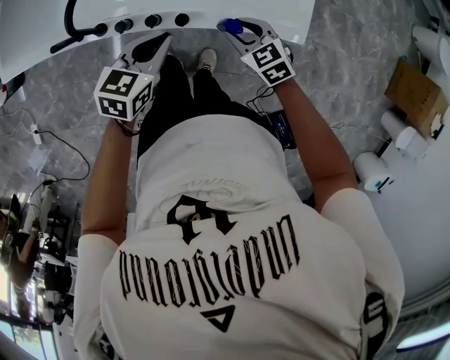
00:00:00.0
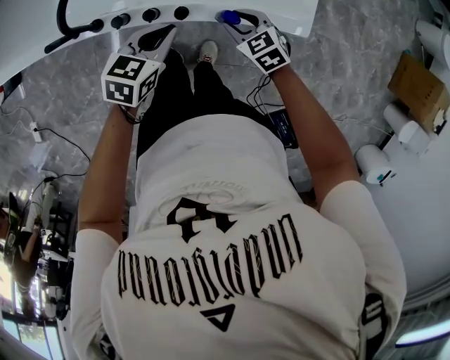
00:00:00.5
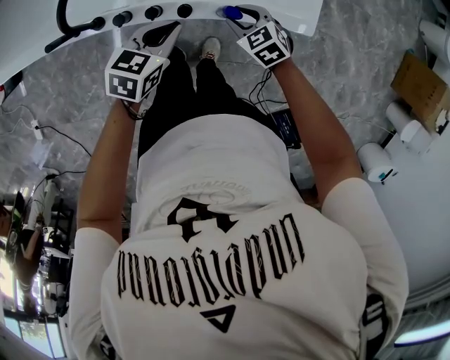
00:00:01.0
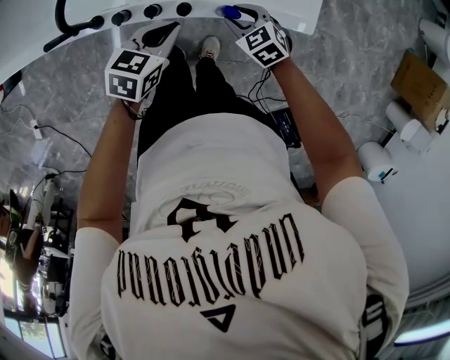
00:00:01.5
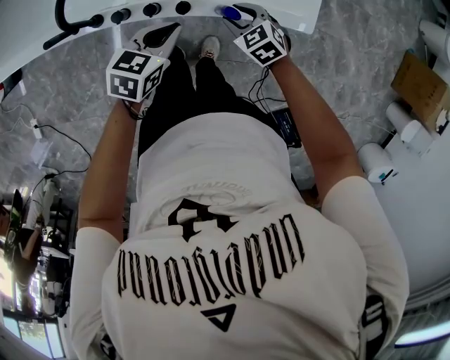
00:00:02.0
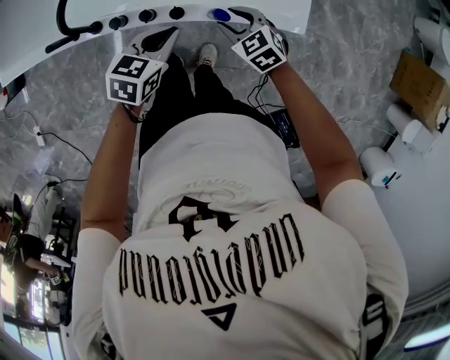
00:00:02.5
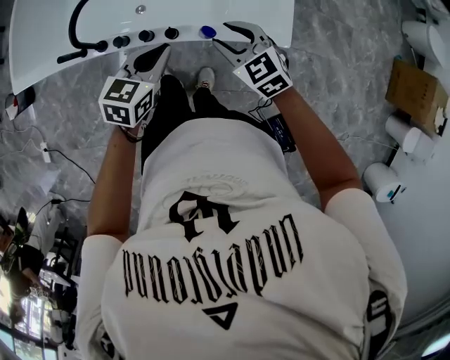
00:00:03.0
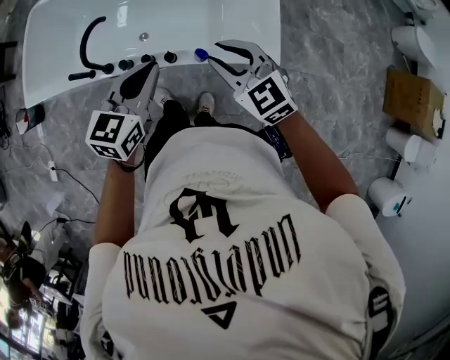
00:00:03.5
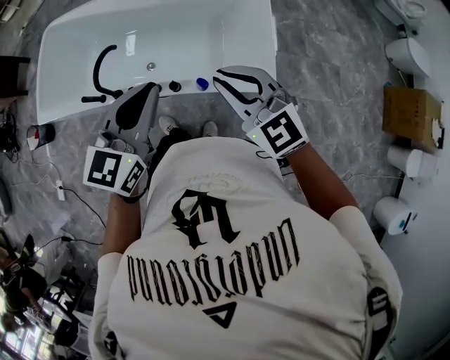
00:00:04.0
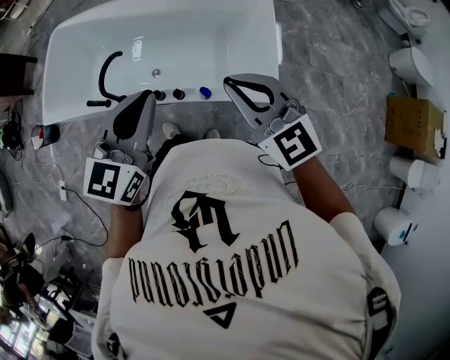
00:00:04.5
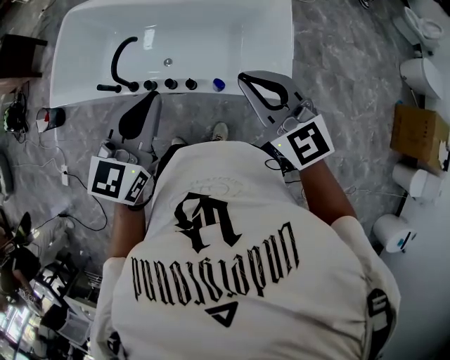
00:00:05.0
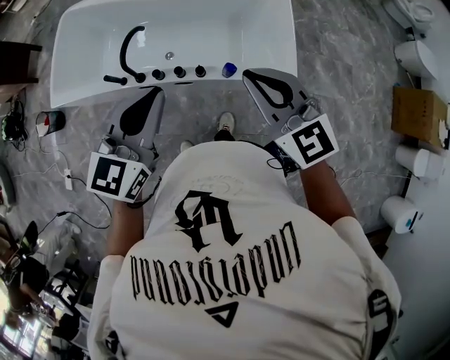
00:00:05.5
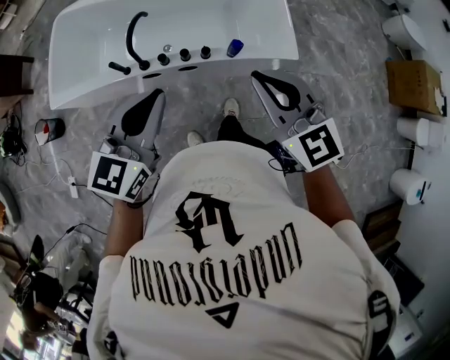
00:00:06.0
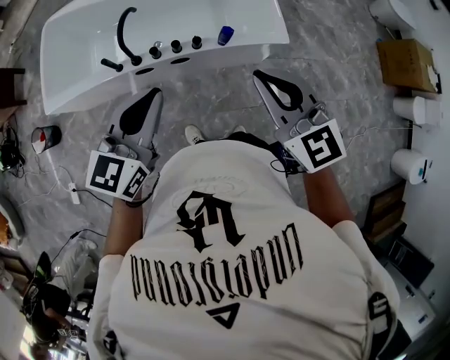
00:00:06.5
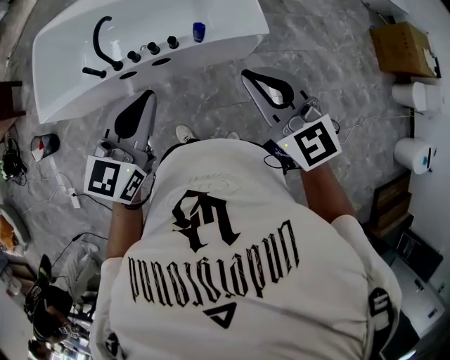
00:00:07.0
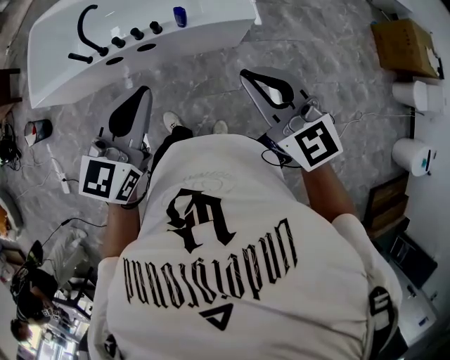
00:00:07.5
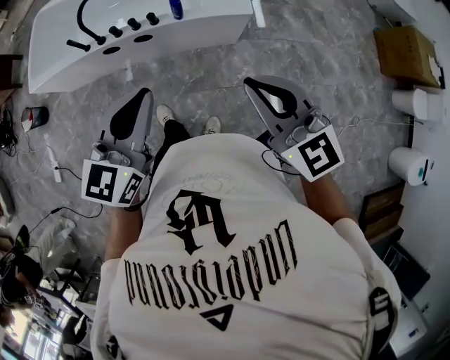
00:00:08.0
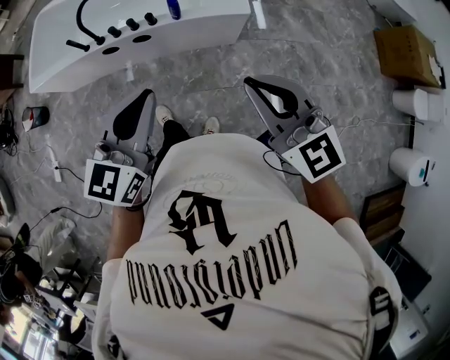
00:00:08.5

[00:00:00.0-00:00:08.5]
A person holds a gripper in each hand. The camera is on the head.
00:00:00.0 to 00:00:02.0: Both grippers travel together downward, some 5 cm.
00:00:02.0 to 00:00:04.0: Both grippers travel together upward, about 35 cm. The right gripper tips its fingers upward by some 40 degrees, and closes. The left gripper swivels roughly 40 degrees.
00:00:04.0 to 00:00:06.5: The two grippers go some 25 cm backward and to the left. The right gripper rotates about 20 degrees.
00:00:06.5 to 00:00:08.5: The grippers both shift to the right and backward by about 30 cm.

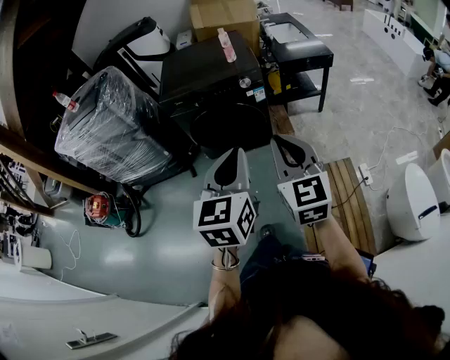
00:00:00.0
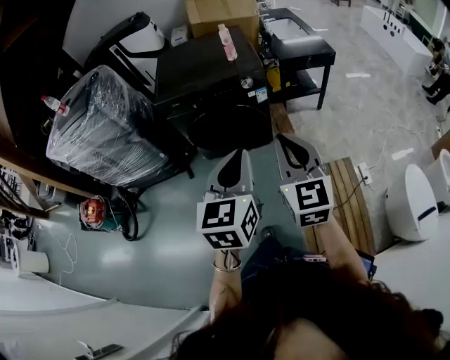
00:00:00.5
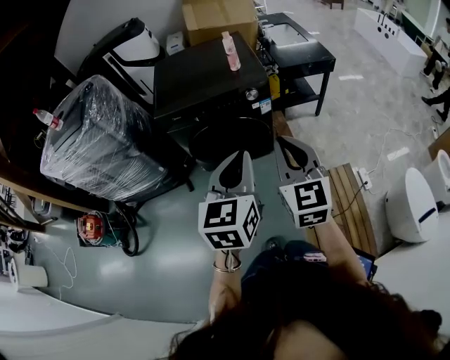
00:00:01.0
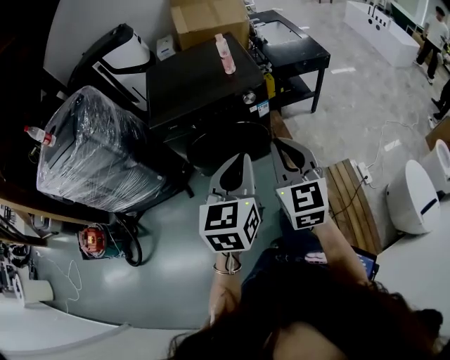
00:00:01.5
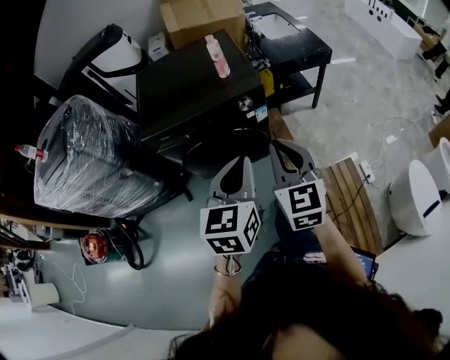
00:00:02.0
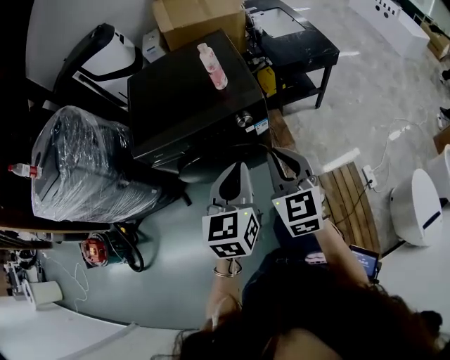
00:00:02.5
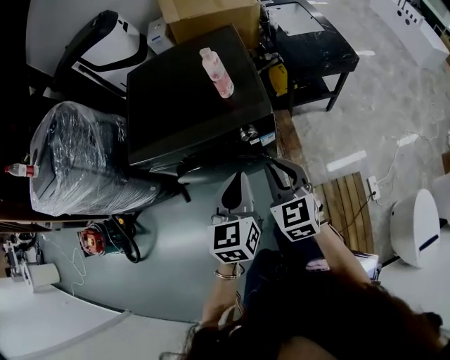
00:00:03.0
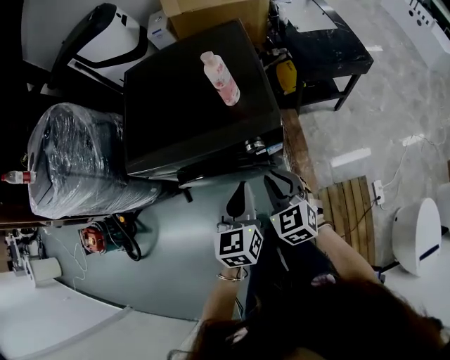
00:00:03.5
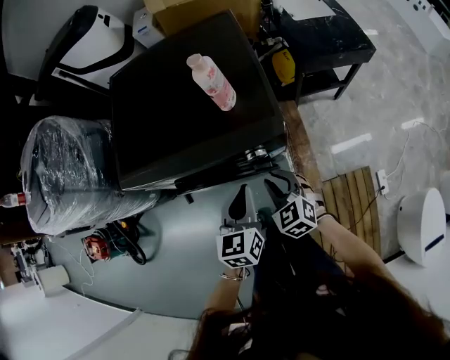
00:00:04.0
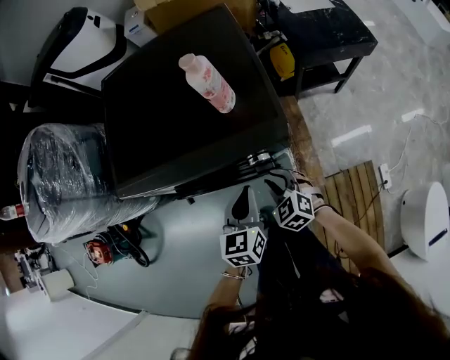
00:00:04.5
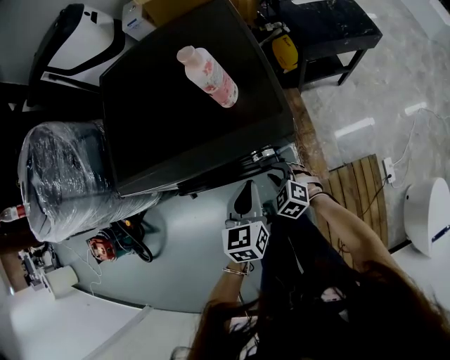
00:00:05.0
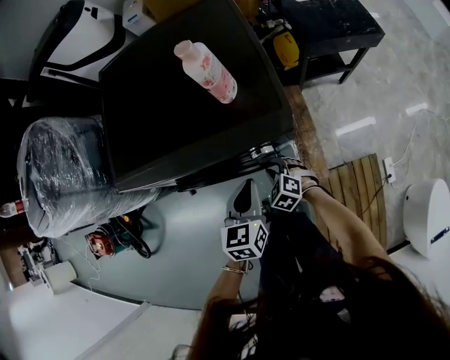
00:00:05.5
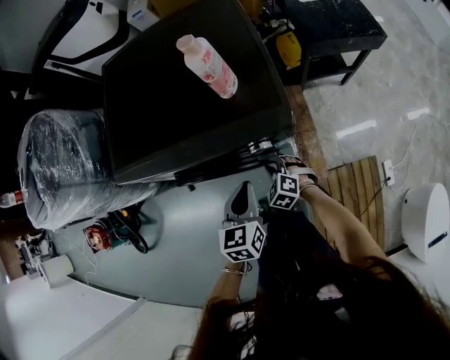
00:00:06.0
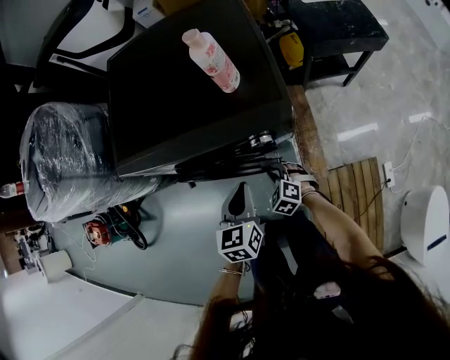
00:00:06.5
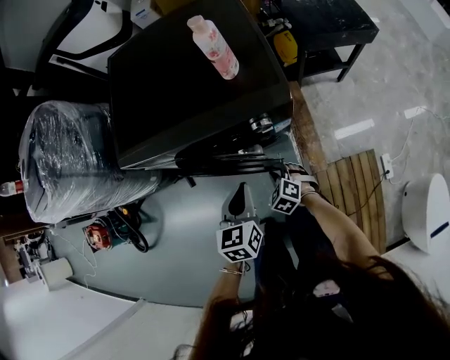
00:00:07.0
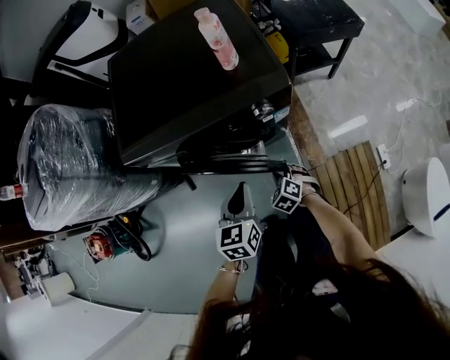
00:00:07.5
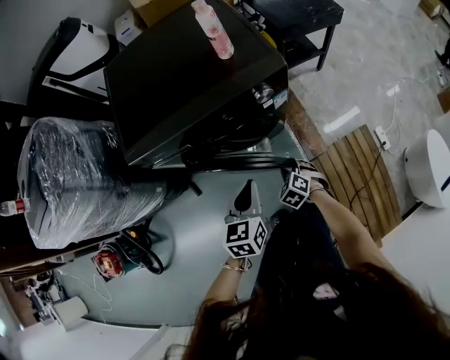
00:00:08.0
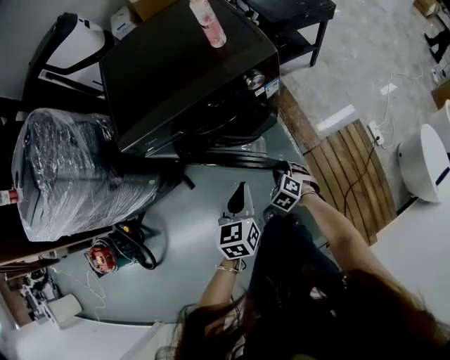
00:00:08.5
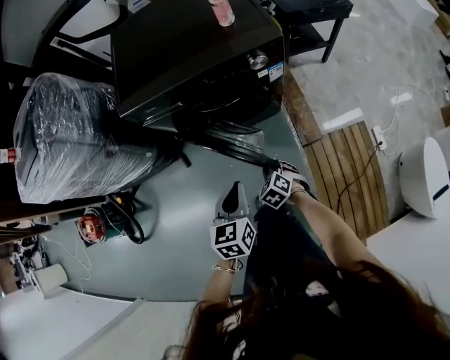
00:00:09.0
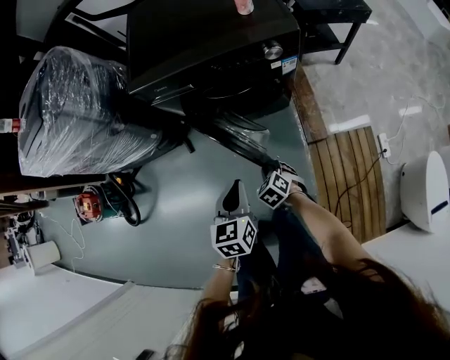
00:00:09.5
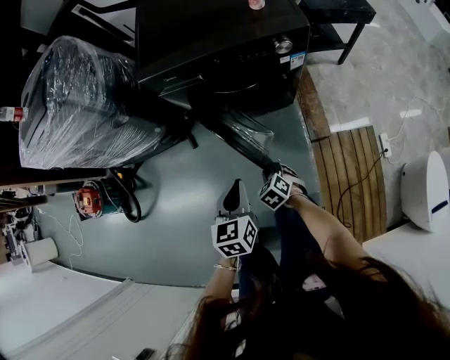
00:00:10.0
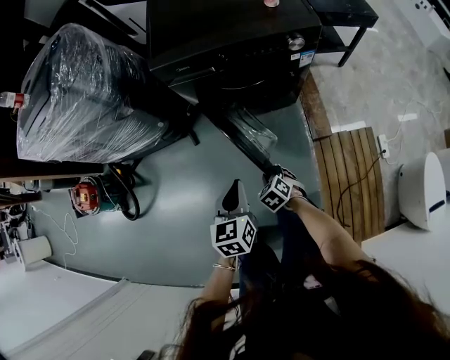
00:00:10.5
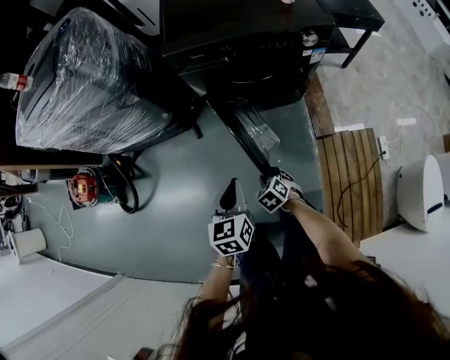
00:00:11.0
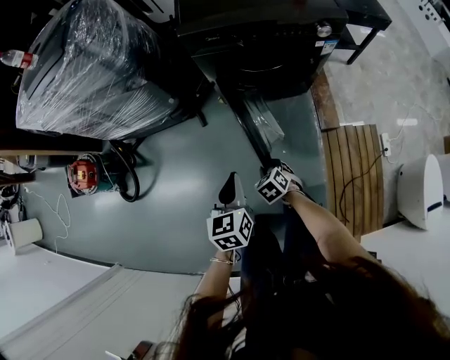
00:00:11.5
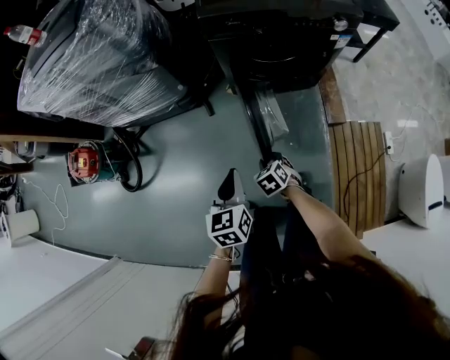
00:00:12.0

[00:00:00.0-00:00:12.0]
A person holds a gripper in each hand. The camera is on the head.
00:00:00.0 to 00:00:02.0: Both grippers travel together forward, roughly 25 cm.
00:00:02.0 to 00:00:04.0: The right gripper heads downward and forward, covering roughly 40 cm, changes its angle by approximately 40 degrees, and opens up. Meanwhile the left gripper shifts roughly 35 cm forward and downward.
00:00:04.0 to 00:00:06.0: The left gripper is displaced downward by roughly 5 cm. Meanwhile the right gripper travels downward by about 15 cm, and changes its angle by about 30 degrees.
00:00:06.0 to 00:00:08.0: The right gripper shifts about 15 cm backward, and changes its angle by about 20 degrees, while the left gripper moves backward and to the left, approximately 15 cm.
00:00:08.0 to 00:00:10.0: The grippers both shift backward and to the left by approximately 20 cm.
00:00:10.0 to 00:00:12.0: The grippers both shift to the left by some 20 cm.

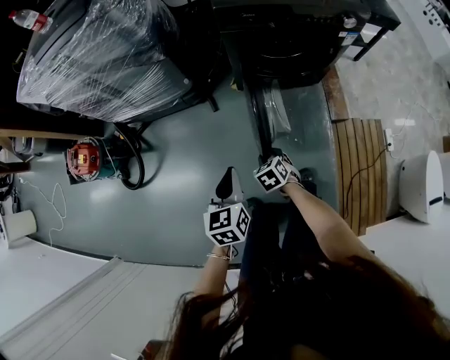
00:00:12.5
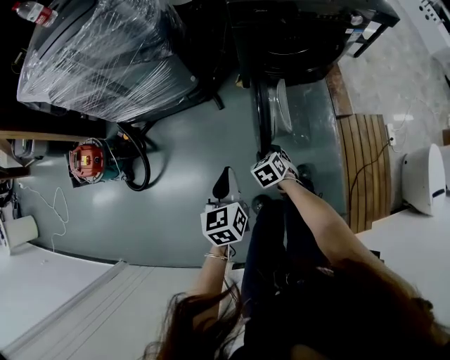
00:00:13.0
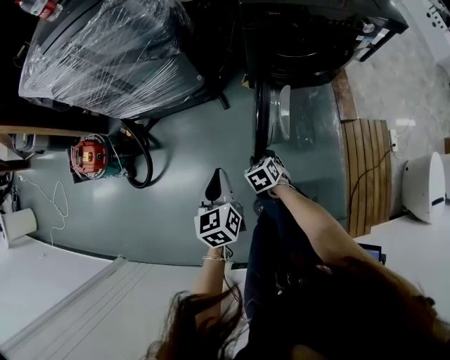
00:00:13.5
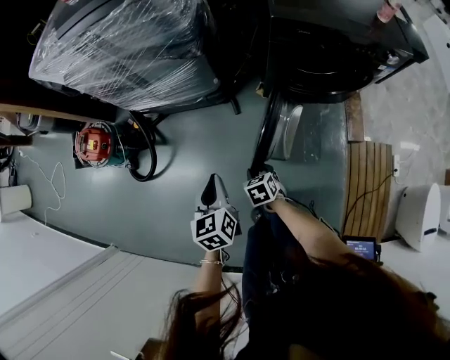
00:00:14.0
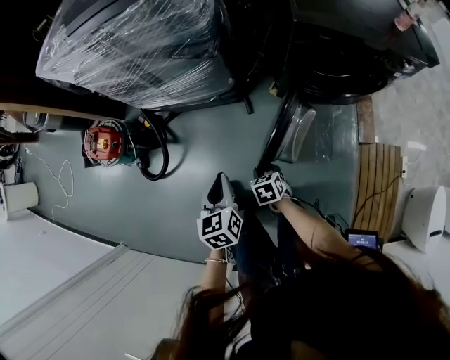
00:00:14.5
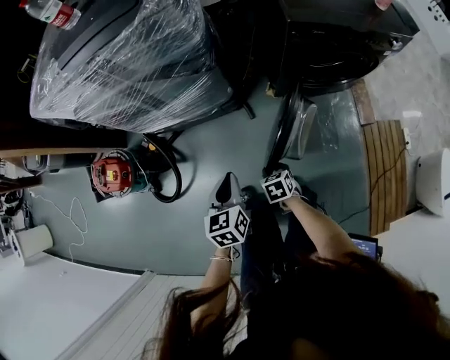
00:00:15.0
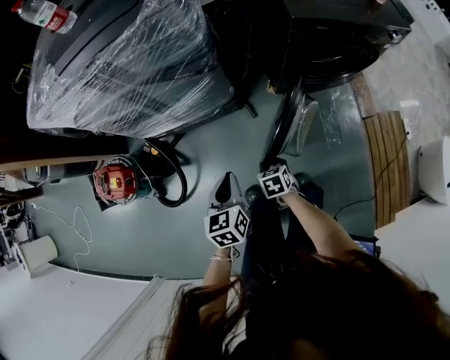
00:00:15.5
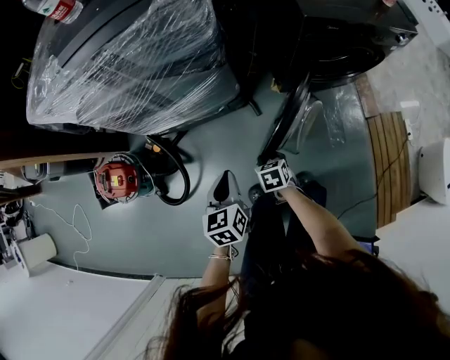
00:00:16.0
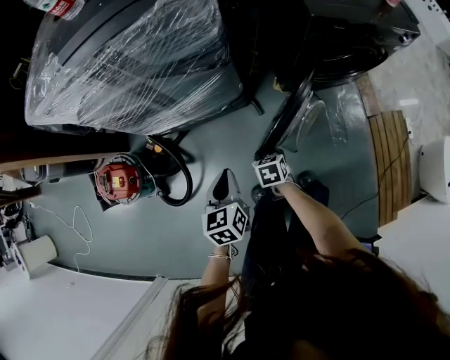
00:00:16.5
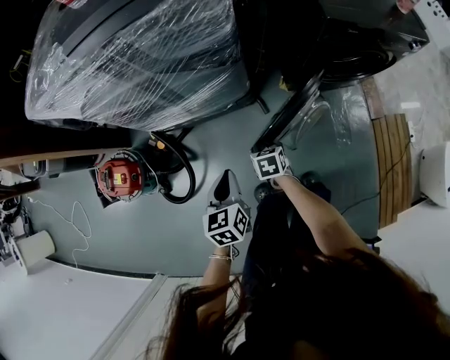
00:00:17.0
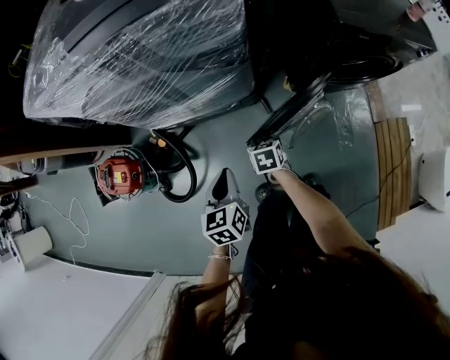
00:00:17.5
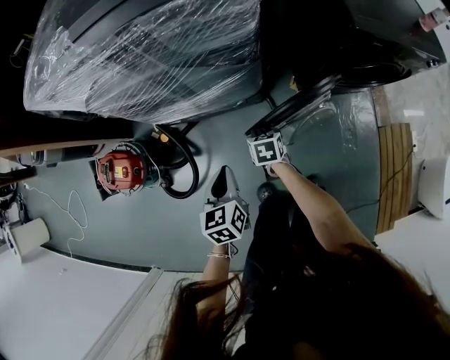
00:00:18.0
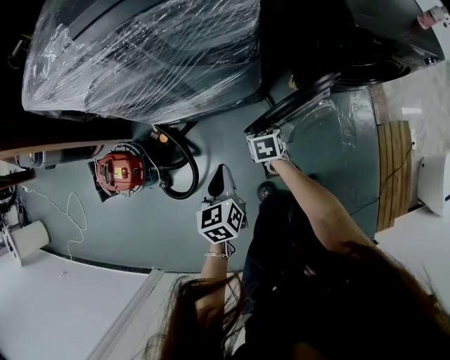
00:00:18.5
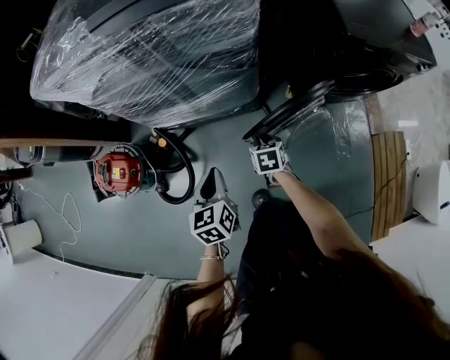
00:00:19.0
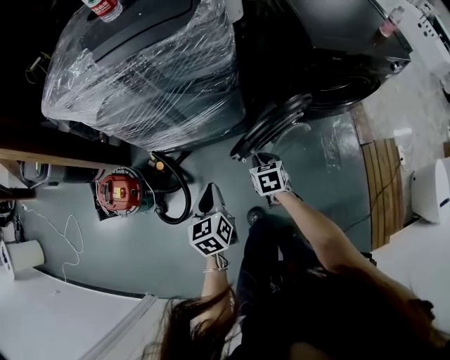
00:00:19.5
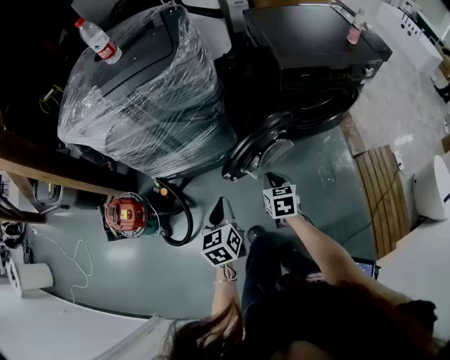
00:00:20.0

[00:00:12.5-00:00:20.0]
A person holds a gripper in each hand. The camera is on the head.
00:00:12.5 to 00:00:14.5: Both grippers travel together to the left and forward, approximately 20 cm.
00:00:14.5 to 00:00:16.5: The grippers both shift to the left and forward by some 15 cm.
00:00:16.5 to 00:00:18.0: The left gripper shifts roughly 5 cm to the left; the right gripper goes about 15 cm forward and to the left.
00:00:18.0 to 00:00:20.0: The right gripper heads upward, to the right and backward, covering approximately 25 cm; the left gripper goes some 15 cm upward, to the right and backward.
